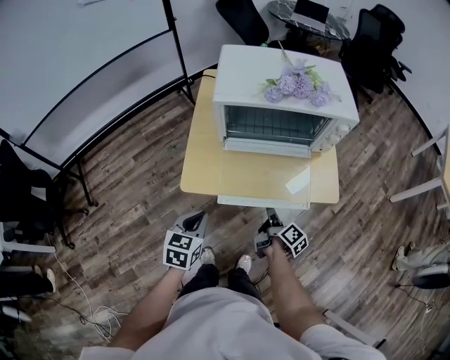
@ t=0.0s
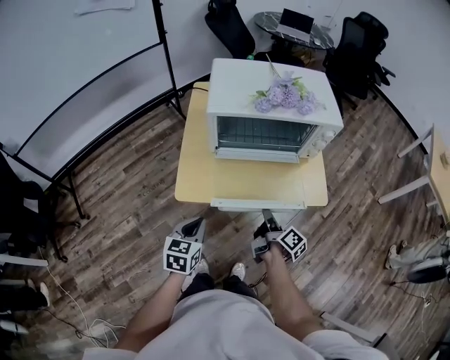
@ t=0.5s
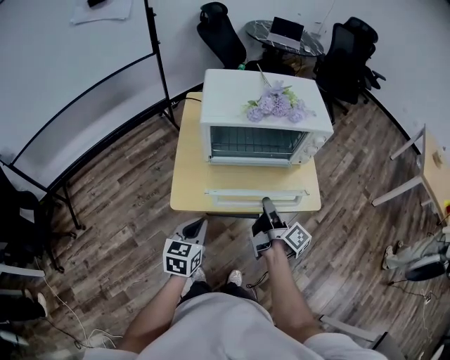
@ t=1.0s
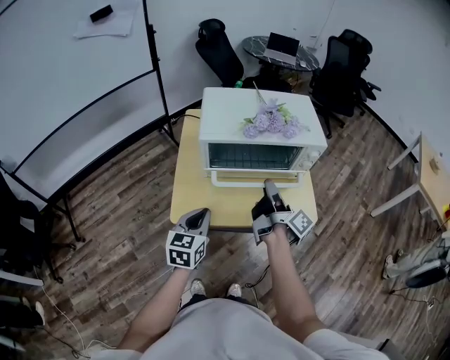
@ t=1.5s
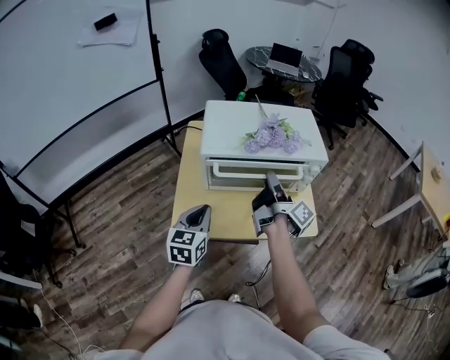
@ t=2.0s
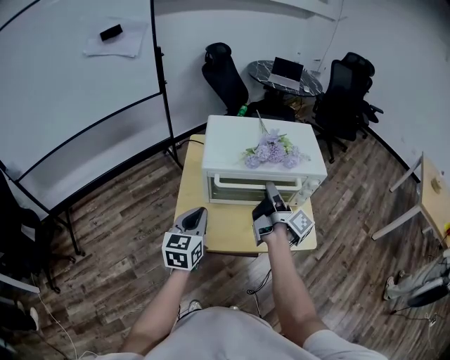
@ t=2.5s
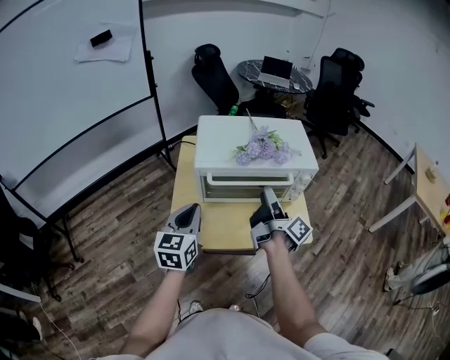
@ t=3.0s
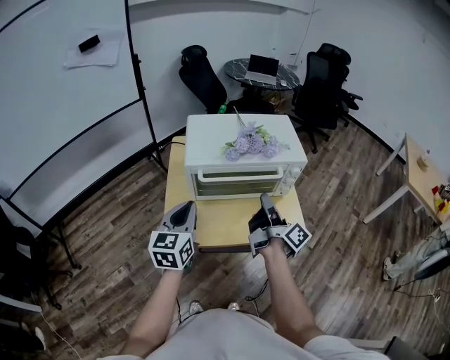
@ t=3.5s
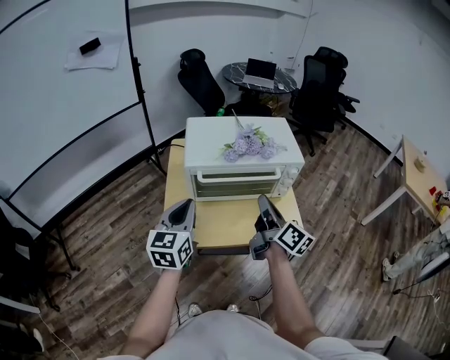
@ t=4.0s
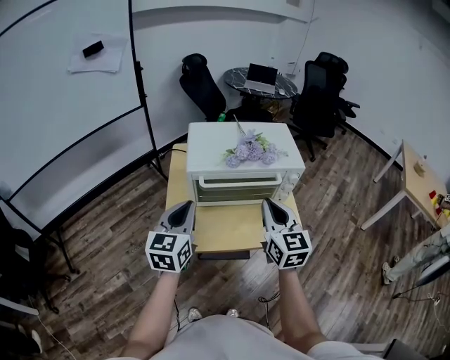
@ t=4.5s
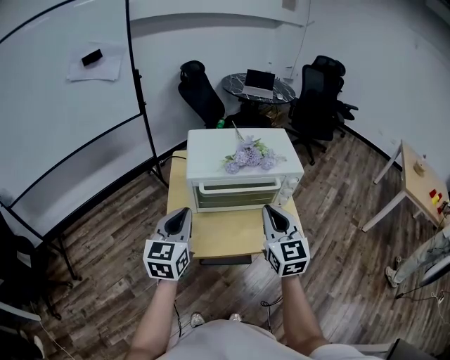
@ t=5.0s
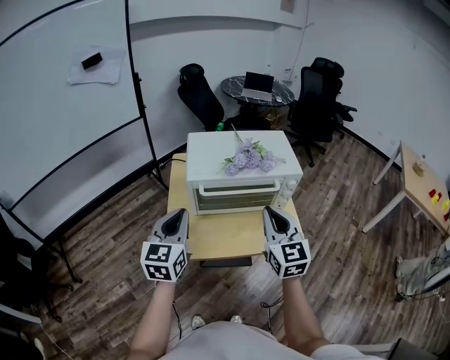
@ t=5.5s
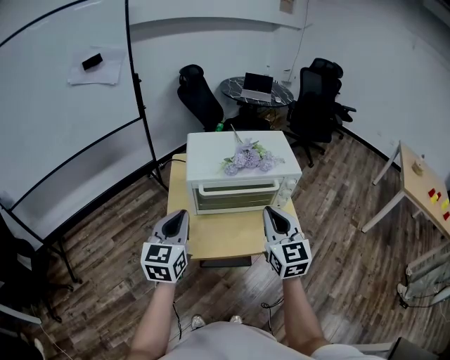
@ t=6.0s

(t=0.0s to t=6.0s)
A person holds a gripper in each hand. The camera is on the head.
t=0.0s - t=2.0s: The left gripper is displaced forward and upward by approximately 15 cm, while the right gripper travels upward and forward by some 30 cm, and tilts its fingers roughly 30 degrees upward.
t=2.0s - t=4.0s: The right gripper moves backward, approximately 10 cm, and rotates some 30 degrees. Meanwhile the left gripper shifts about 10 cm upward.
t=4.0s - t=6.0s: The right gripper is displaced upward by roughly 5 cm, and twists some 60 degrees counterclockwise, seen from behind.

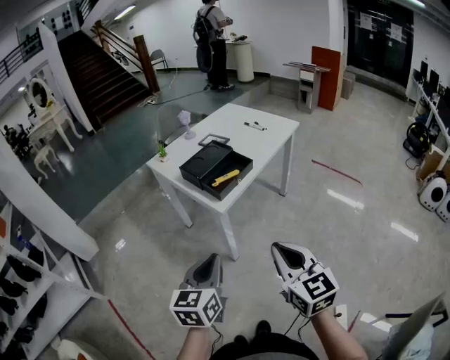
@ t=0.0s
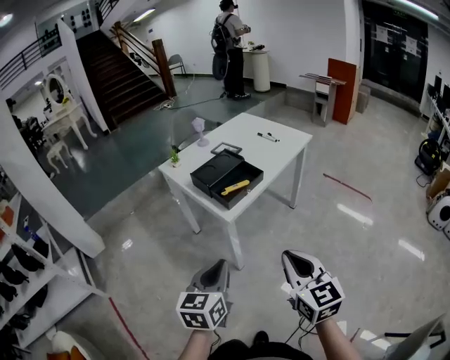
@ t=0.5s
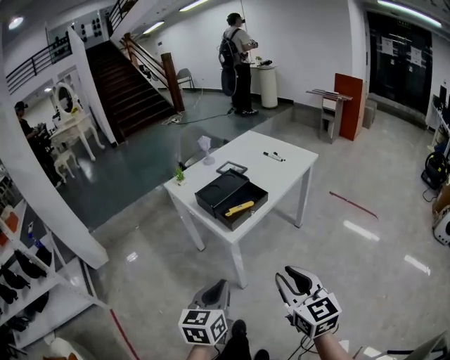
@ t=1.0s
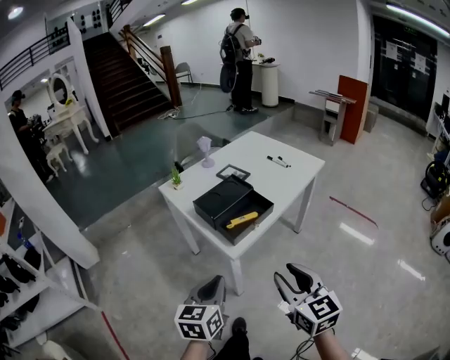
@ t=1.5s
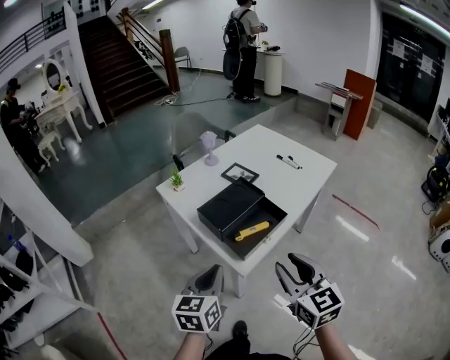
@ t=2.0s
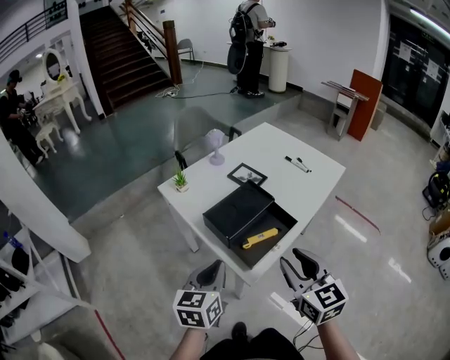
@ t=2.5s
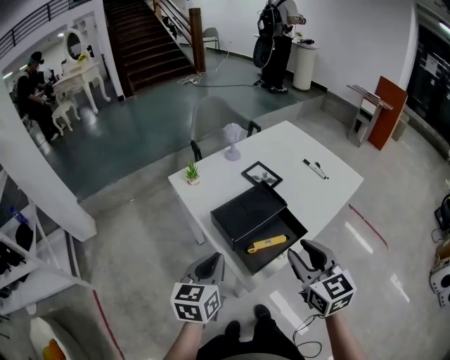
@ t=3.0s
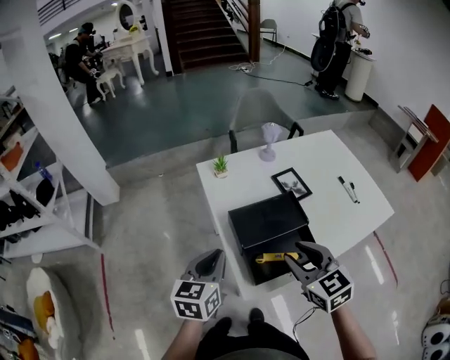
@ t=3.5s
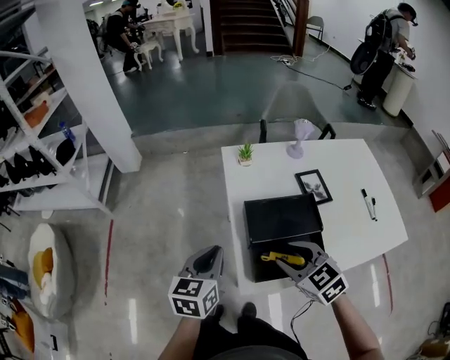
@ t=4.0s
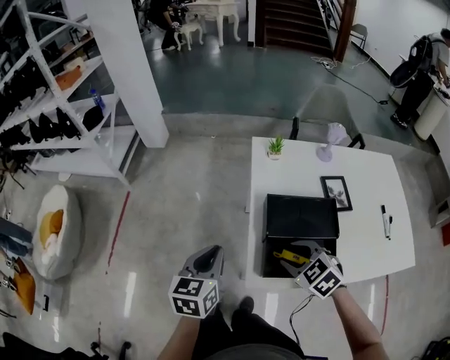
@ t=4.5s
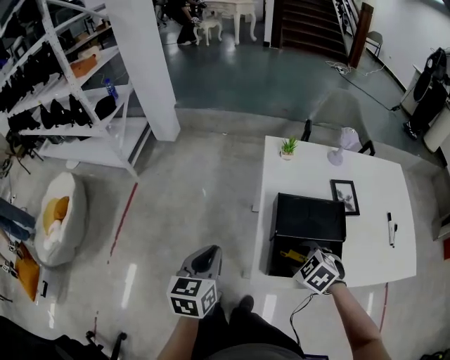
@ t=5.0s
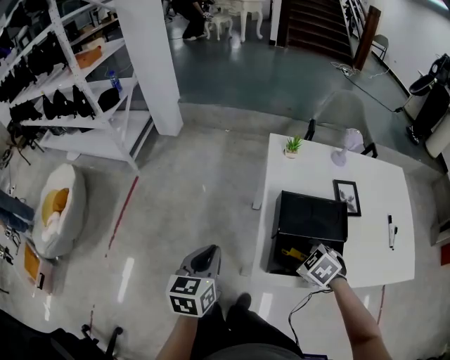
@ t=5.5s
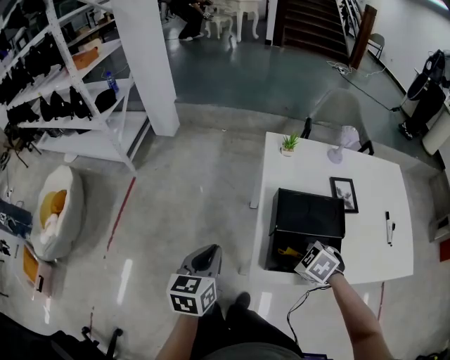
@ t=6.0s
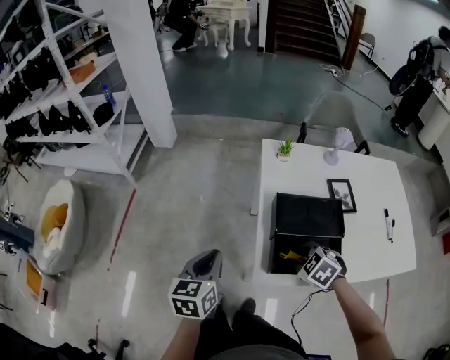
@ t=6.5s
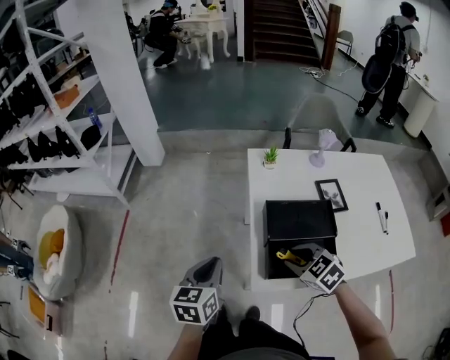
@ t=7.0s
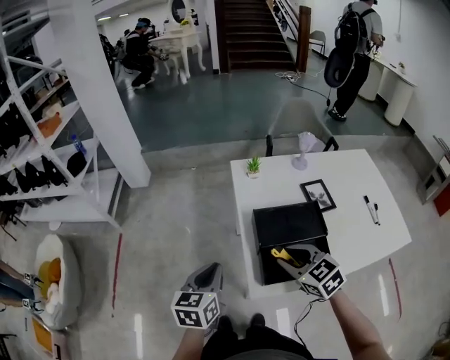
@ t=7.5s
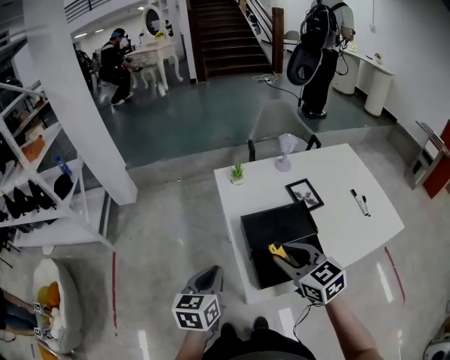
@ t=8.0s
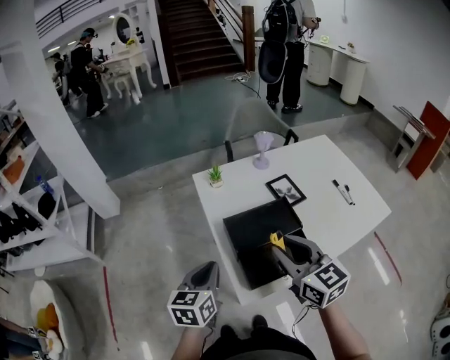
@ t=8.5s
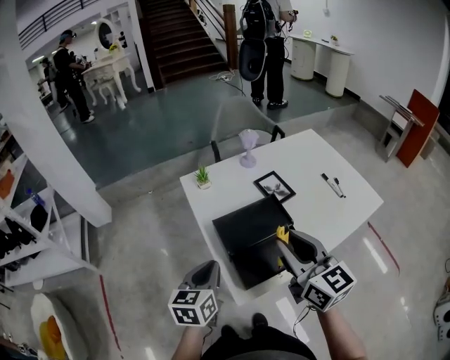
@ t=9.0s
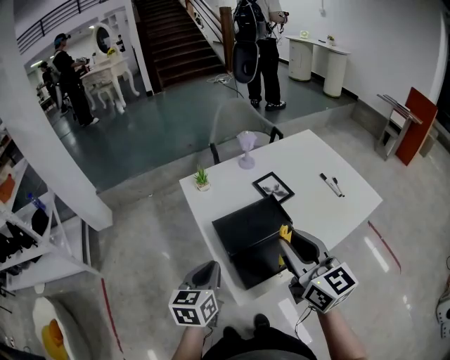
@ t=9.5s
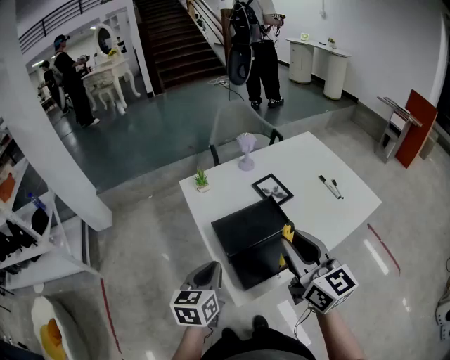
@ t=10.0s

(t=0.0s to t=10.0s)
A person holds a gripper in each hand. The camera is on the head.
t=0.0s - t=2.0s: The two grippers go roughly 25 cm forward. The right gripper opens its fingers.
t=2.0s - t=4.0s: The right gripper ends up about 25 cm from where it was, and changes its angle by roughly 60 degrees. The left gripper moves some 10 cm, and changes its angle by about 30 degrees.
t=4.0s - t=6.0s: The left gripper travels to the left by approximately 10 cm. Meanwhile the right gripper travels downward by roughly 10 cm, and turns by roughly 40 degrees.
t=6.0s - t=8.0s: The left gripper moves roughly 5 cm, while the right gripper moves upward, about 15 cm, and tilts its fingers about 40 degrees upward.
t=8.0s - t=10.0s: The left gripper shifts about 5 cm to the right. Meanwhile the right gripper shifts some 15 cm upward and to the right, and swivels some 40 degrees.

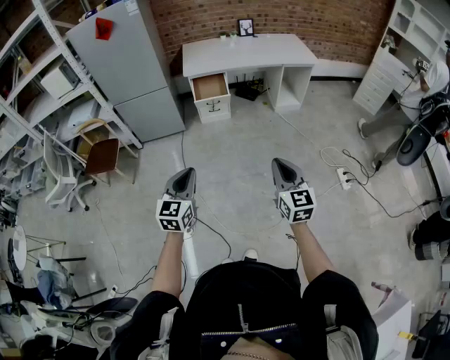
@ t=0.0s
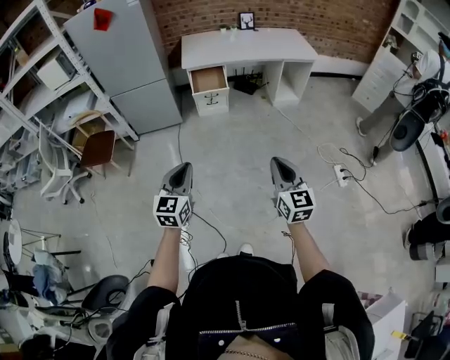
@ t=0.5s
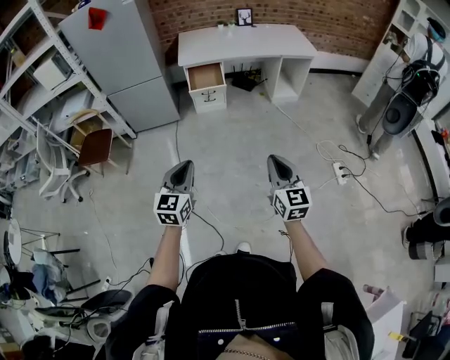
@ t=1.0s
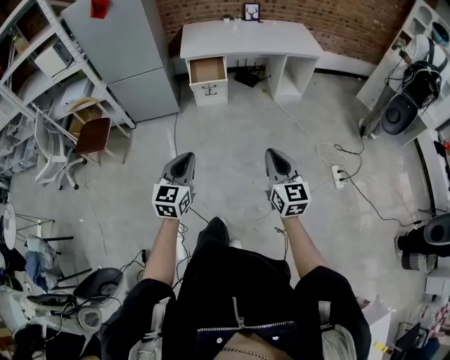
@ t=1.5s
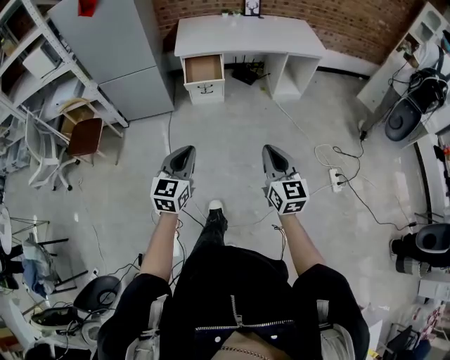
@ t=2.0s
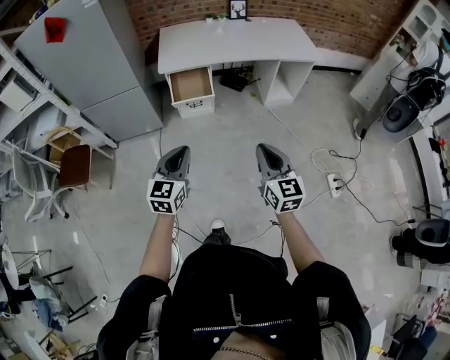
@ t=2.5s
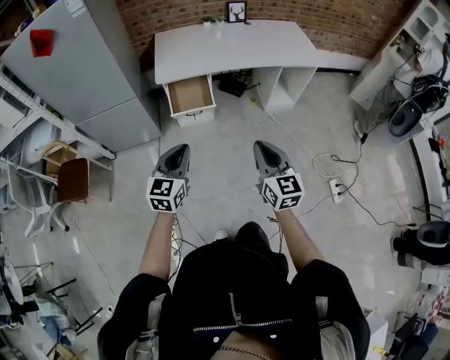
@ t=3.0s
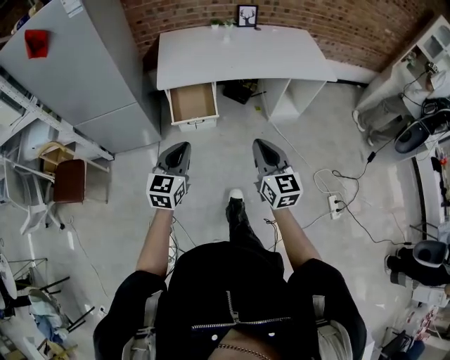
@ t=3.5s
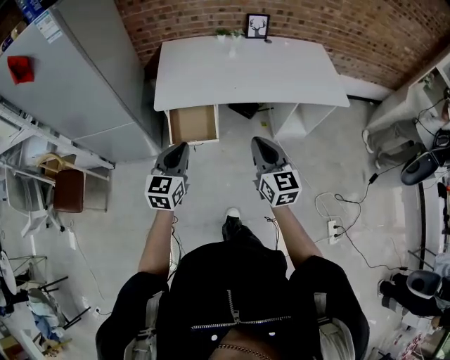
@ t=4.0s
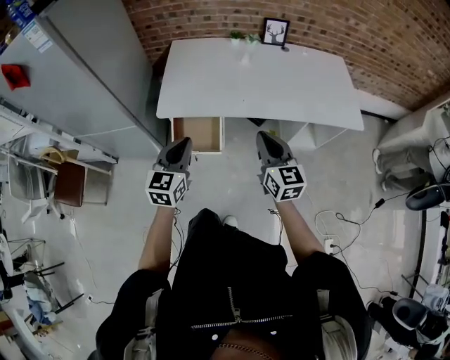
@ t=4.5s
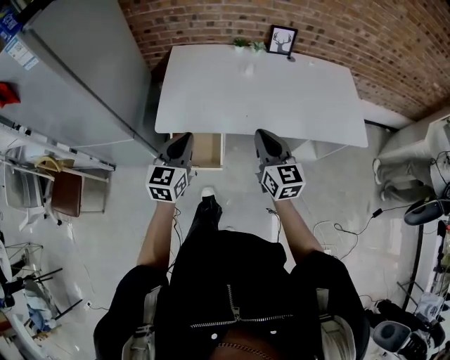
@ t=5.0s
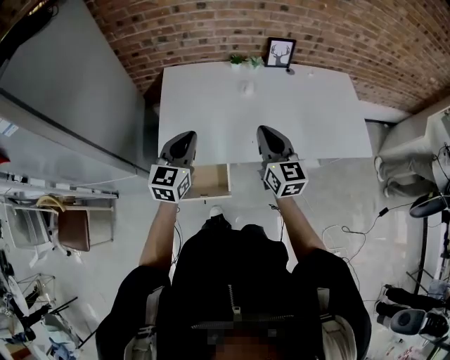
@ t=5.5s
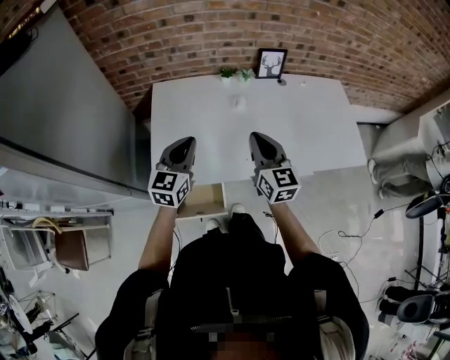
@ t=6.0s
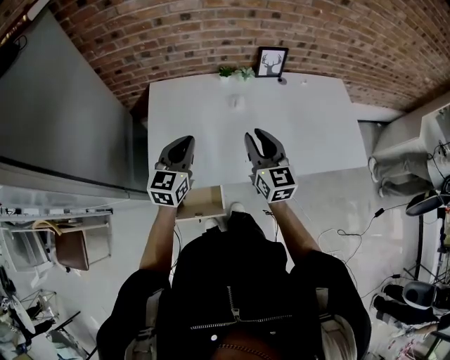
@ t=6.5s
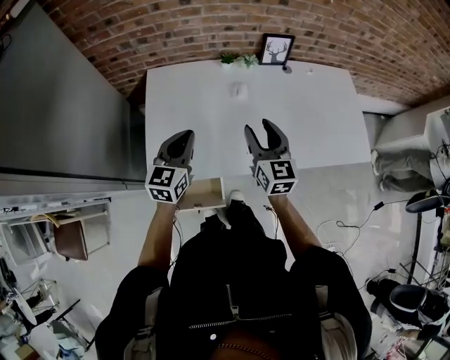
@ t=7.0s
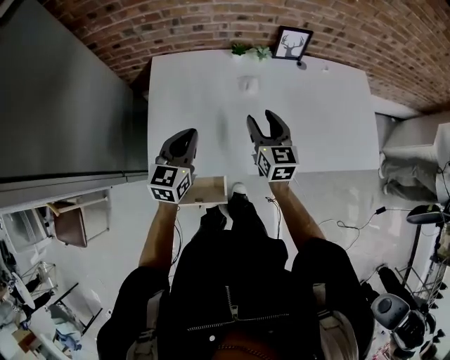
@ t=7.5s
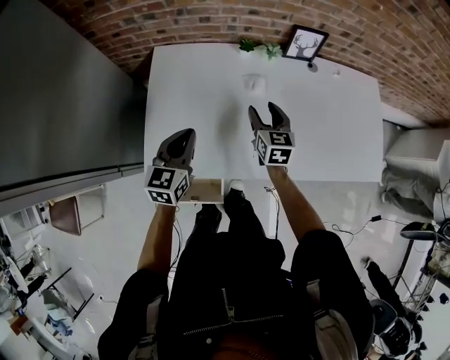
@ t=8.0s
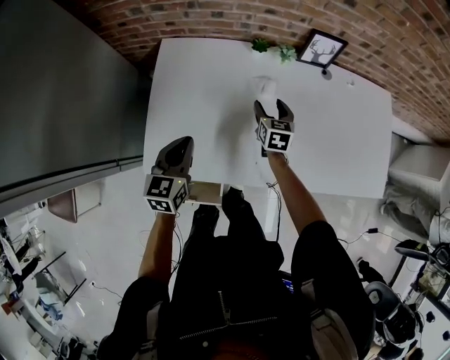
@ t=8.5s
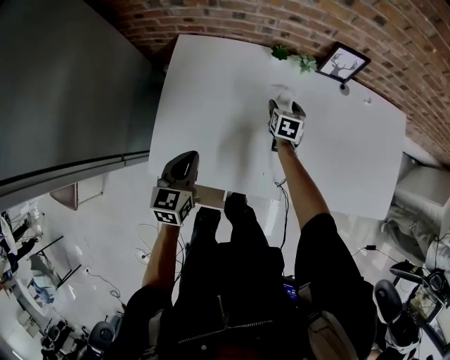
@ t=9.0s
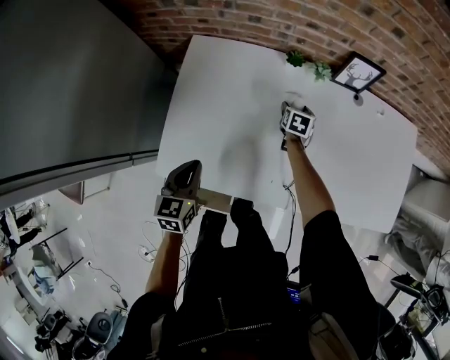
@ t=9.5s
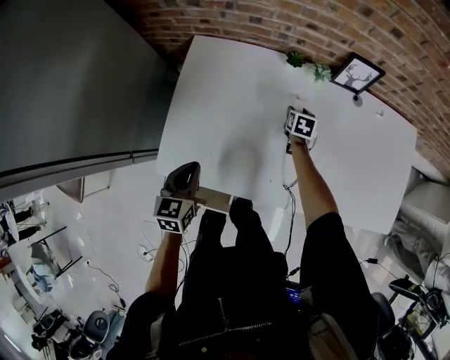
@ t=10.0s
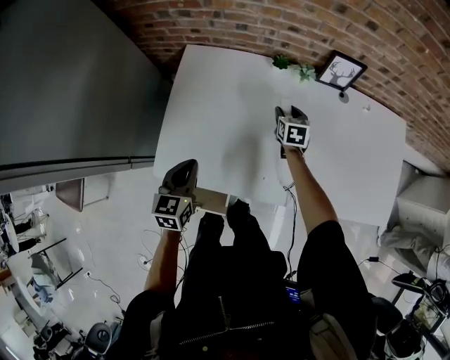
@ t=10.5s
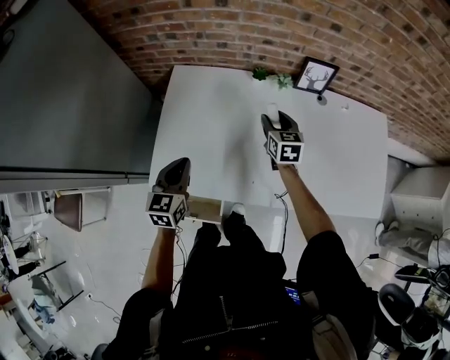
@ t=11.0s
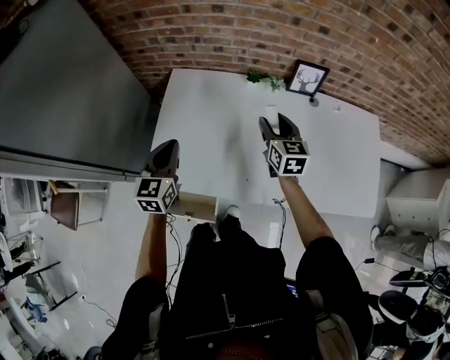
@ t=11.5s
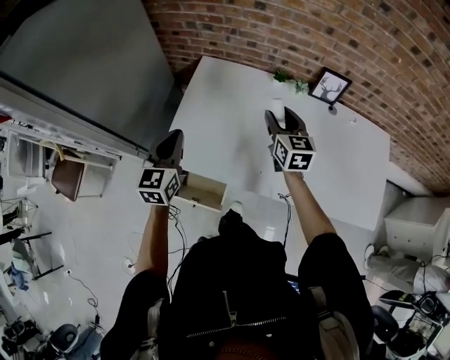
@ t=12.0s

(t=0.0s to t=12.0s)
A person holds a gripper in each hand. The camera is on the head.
t=0.0s - t=2.0s: The right gripper is displaced forward by some 15 cm, while the left gripper heads forward and to the right, covering some 15 cm.
t=2.0s - t=4.0s: Both grippers are carried forward, roughly 50 cm.
t=4.0s - t=6.0s: The two grippers travel together, forward, roughly 40 cm.
t=6.0s - t=8.0s: The left gripper heads downward and forward, covering roughly 10 cm. The right gripper shifts approximately 25 cm forward and downward, and opens.
t=8.0s - t=10.0s: The left gripper goes roughly 10 cm downward and backward. Meanwhile the right gripper travels downward and forward by about 25 cm, and turns by approximately 30 degrees.
t=10.0s - t=12.0s: The left gripper moves upward, roughly 15 cm, and turns by roughly 20 degrees. Meanwhile the right gripper moves upward and backward, about 30 cm, and angles its fingers upward, by some 30 degrees.
